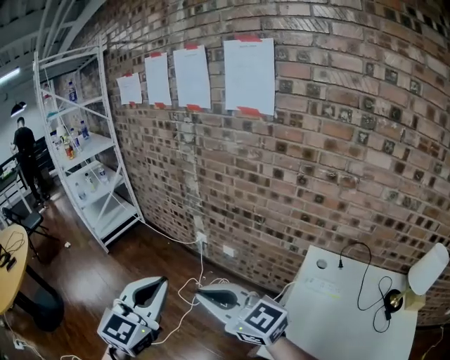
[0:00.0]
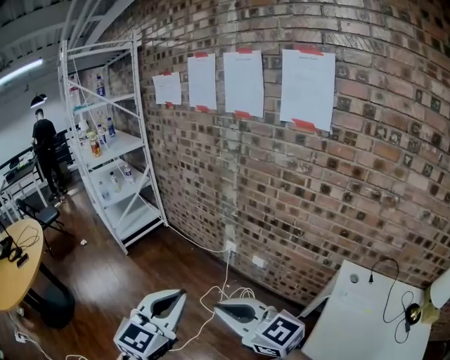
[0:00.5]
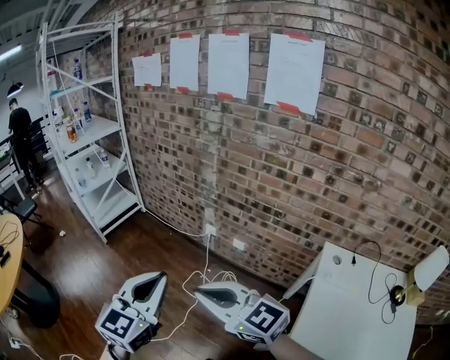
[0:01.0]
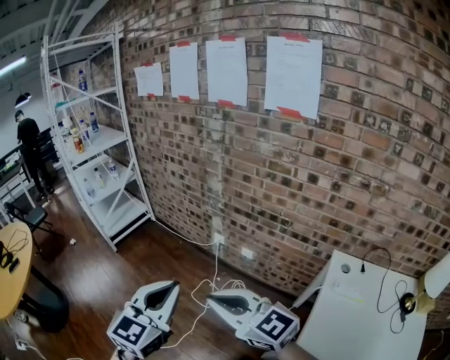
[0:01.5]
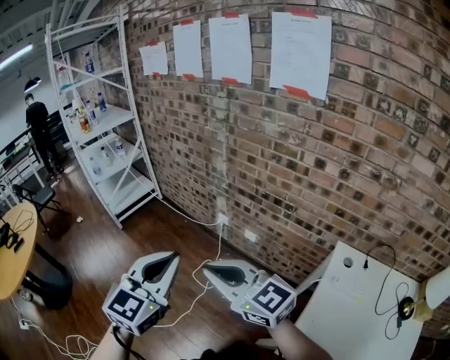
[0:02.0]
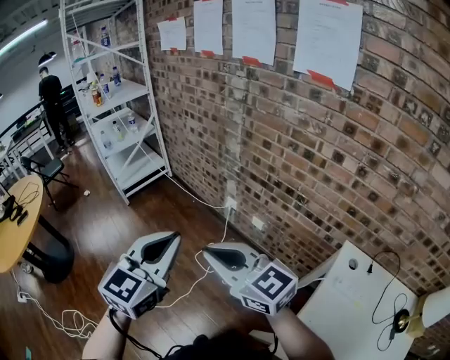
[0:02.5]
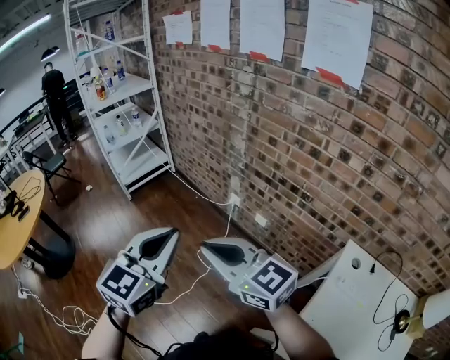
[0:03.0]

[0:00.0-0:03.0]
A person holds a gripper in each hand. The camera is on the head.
0:00.0 to 0:01.5: The two grippers go approximately 10 cm to the left and forward.
0:01.5 to 0:03.0: The right gripper shifts approximately 5 cm forward.

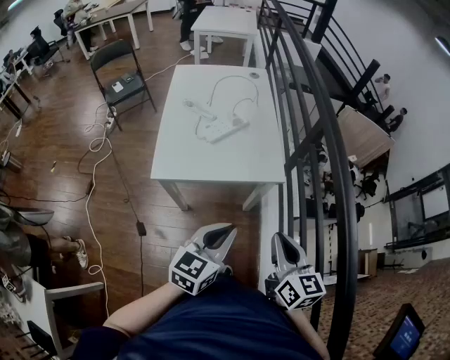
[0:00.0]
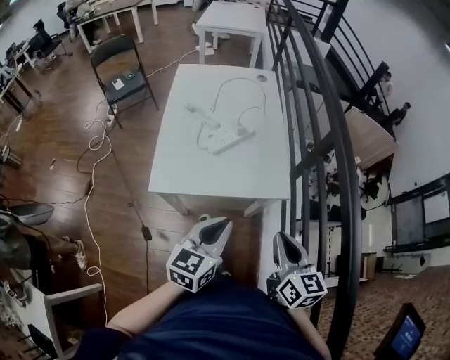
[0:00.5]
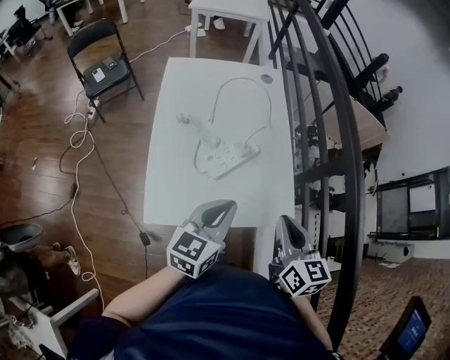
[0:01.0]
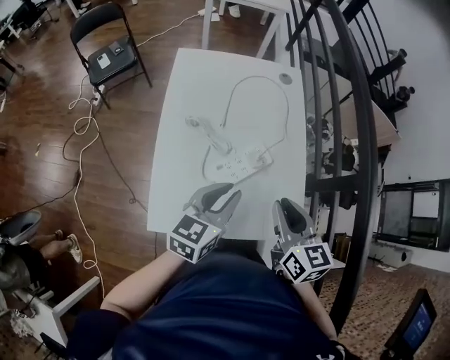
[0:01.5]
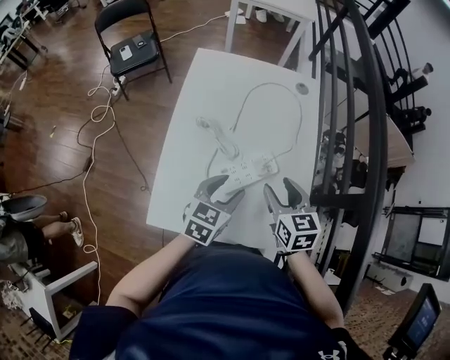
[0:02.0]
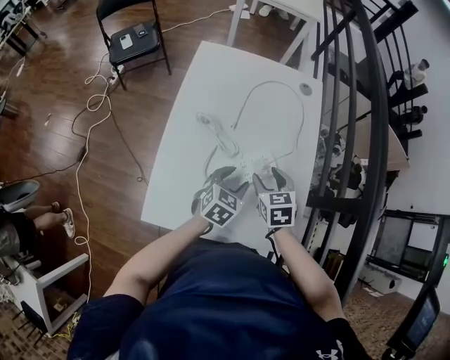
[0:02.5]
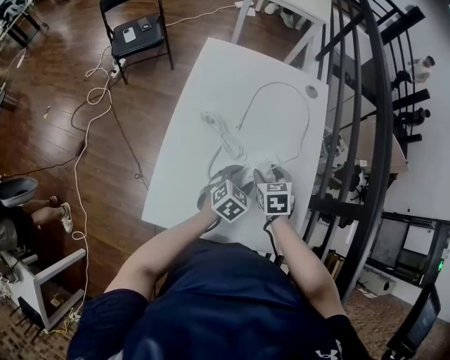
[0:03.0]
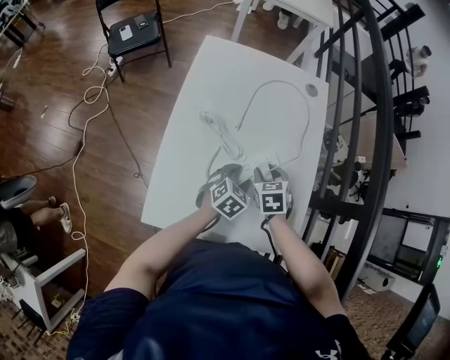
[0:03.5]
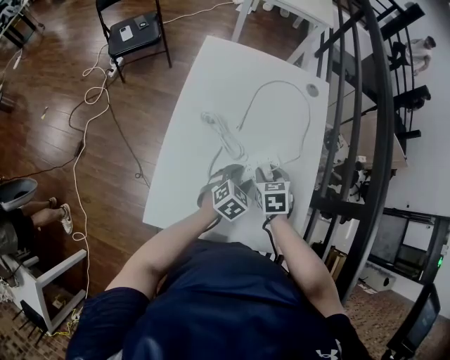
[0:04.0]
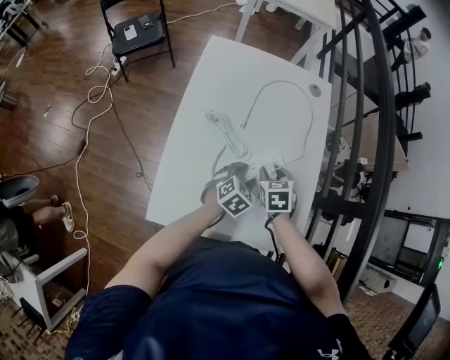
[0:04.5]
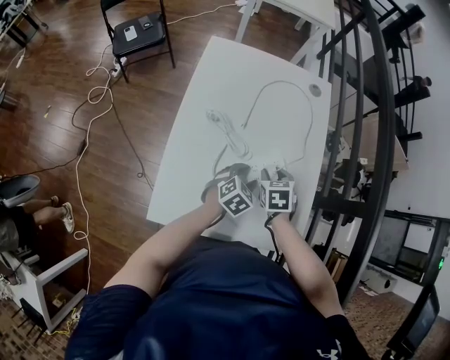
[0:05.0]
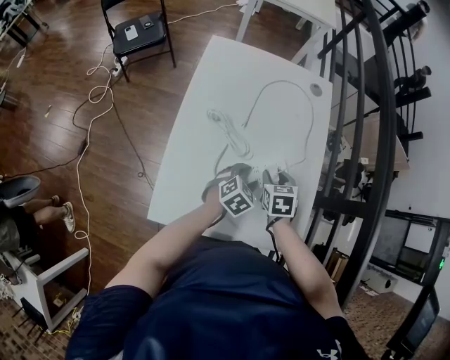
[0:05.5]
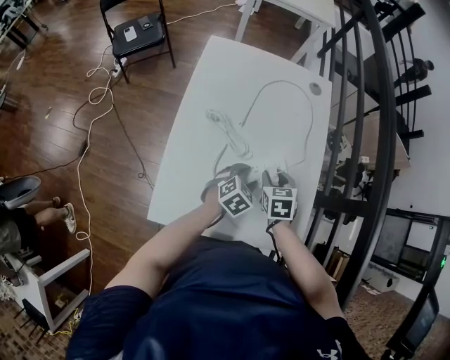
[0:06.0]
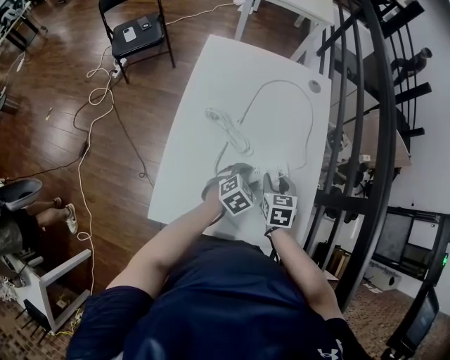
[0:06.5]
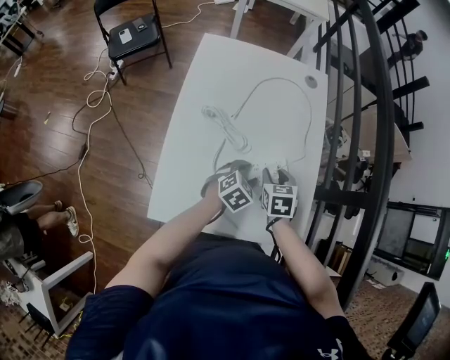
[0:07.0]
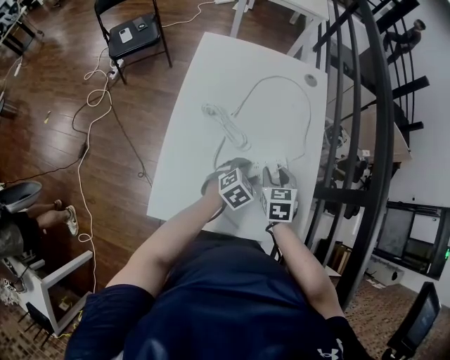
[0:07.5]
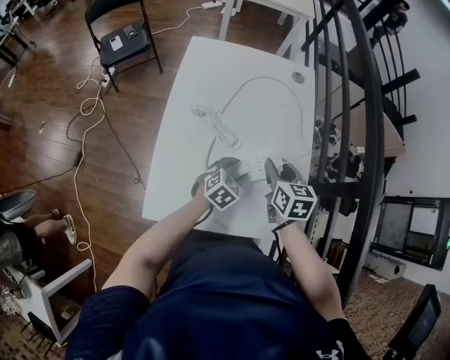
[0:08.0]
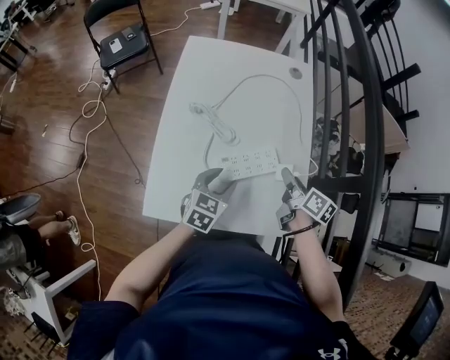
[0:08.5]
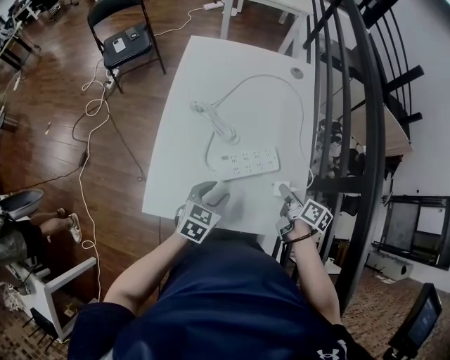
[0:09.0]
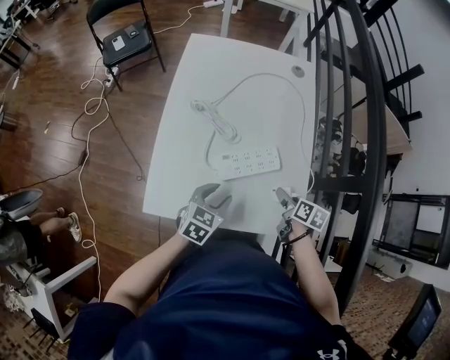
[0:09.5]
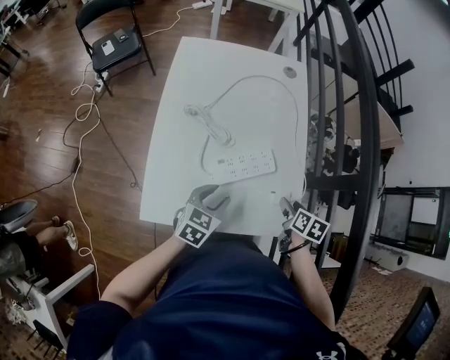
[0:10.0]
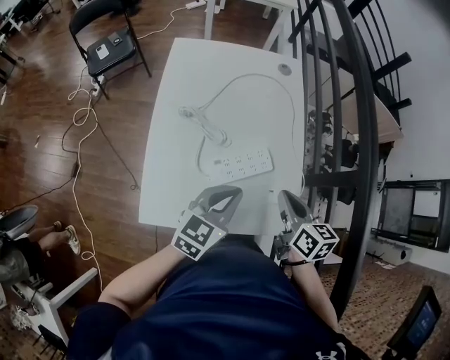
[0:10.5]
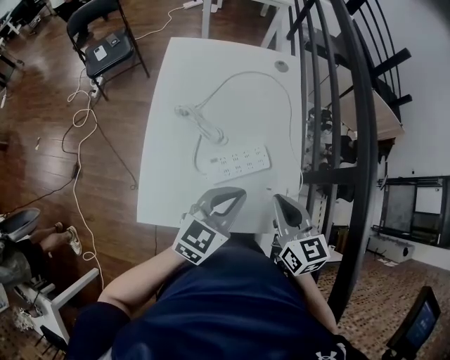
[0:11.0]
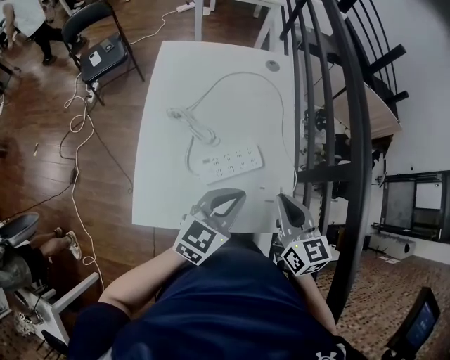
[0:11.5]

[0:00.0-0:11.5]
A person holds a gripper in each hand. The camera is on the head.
0:00.0 to 0:02.0: The two grippers travel together, forward, roughly 40 cm. The right gripper rotates about 30 degrees, and opens; the left gripper opens its fingers.
0:02.0 to 0:04.0: The two grippers go approximately 15 cm downward. The left gripper rotates roughly 20 degrees, while the right gripper rotates about 30 degrees.
0:04.0 to 0:06.0: The grippers move only a little.
0:06.0 to 0:07.5: The grippers move only a little.
0:07.5 to 0:09.5: The right gripper travels to the right and backward by about 15 cm, twists some 50 degrees clockwise, seen from behind, and opens its fingers; the left gripper shifts some 10 cm backward, and changes its angle by roughly 20 degrees.
0:09.5 to 0:11.5: The right gripper is displaced upward by approximately 20 cm, changes its angle by roughly 40 degrees, and closes, while the left gripper moves upward and to the right, approximately 15 cm, turns by some 30 degrees, and closes.

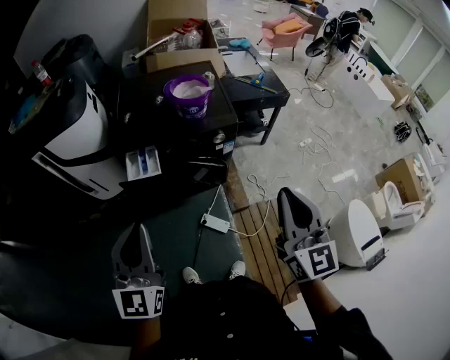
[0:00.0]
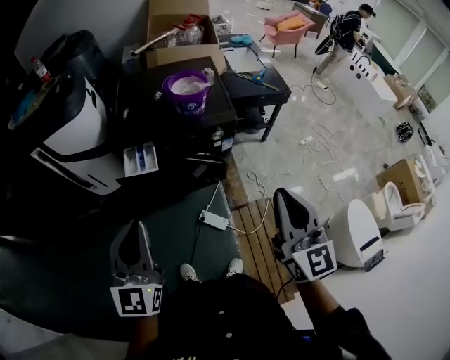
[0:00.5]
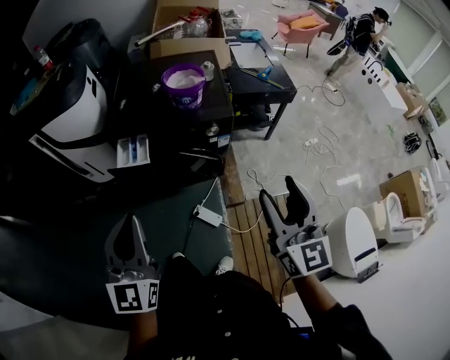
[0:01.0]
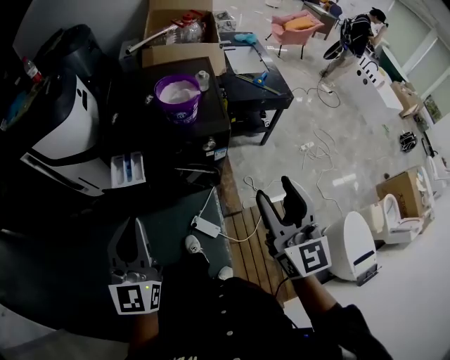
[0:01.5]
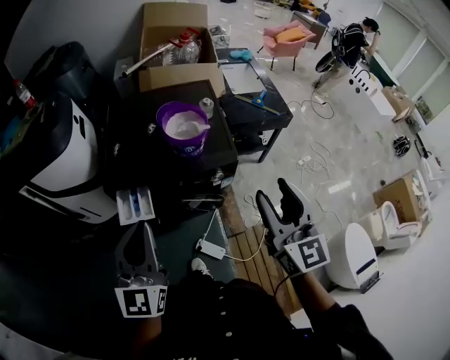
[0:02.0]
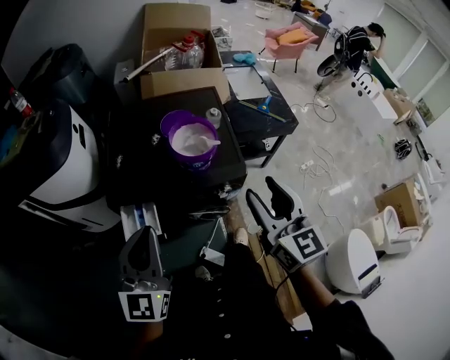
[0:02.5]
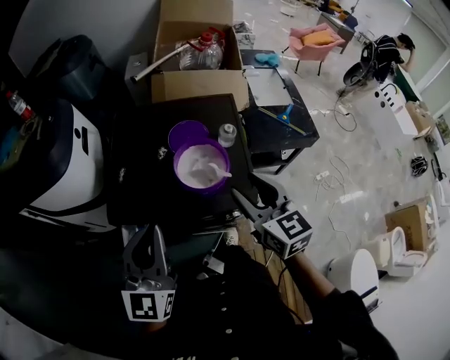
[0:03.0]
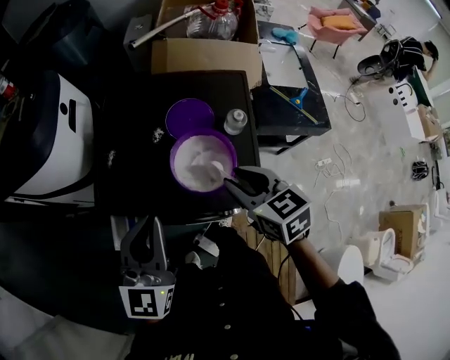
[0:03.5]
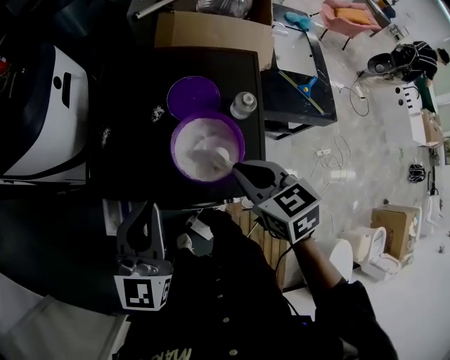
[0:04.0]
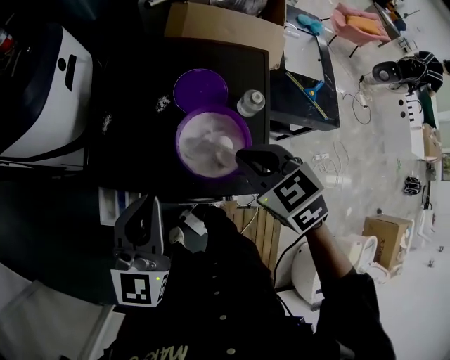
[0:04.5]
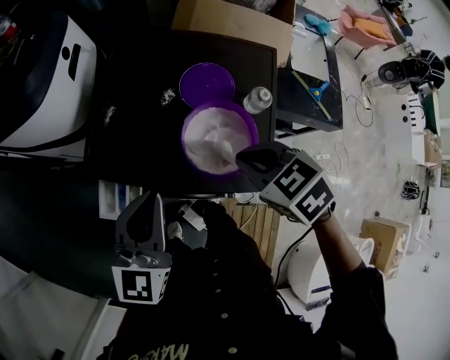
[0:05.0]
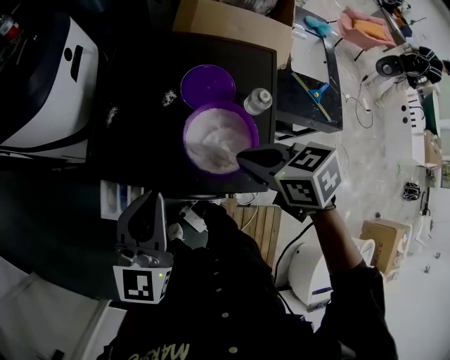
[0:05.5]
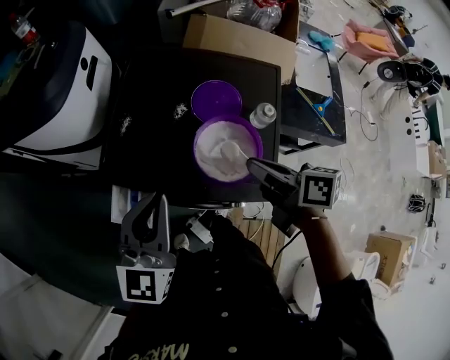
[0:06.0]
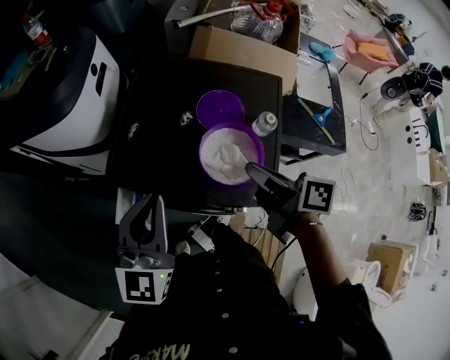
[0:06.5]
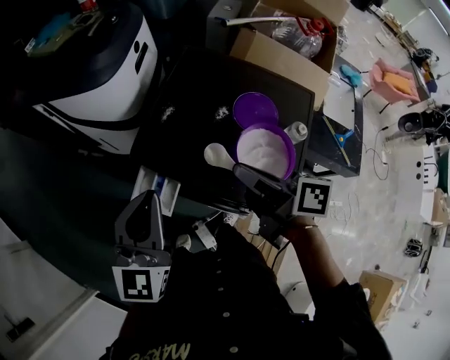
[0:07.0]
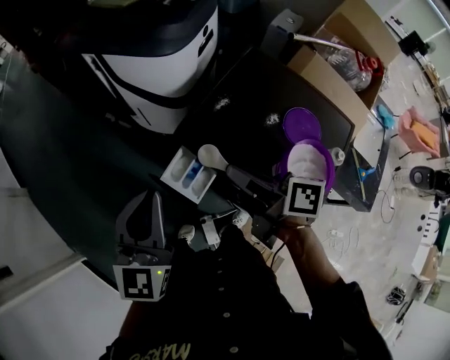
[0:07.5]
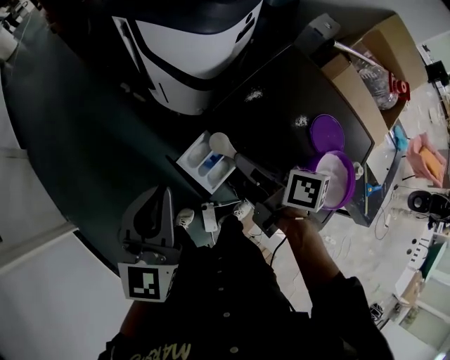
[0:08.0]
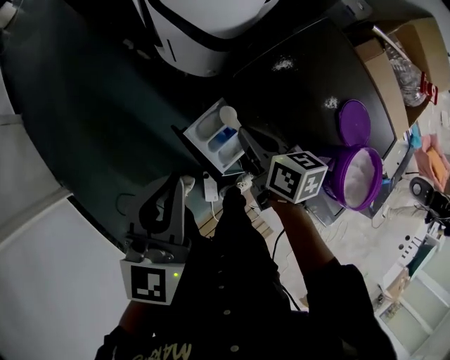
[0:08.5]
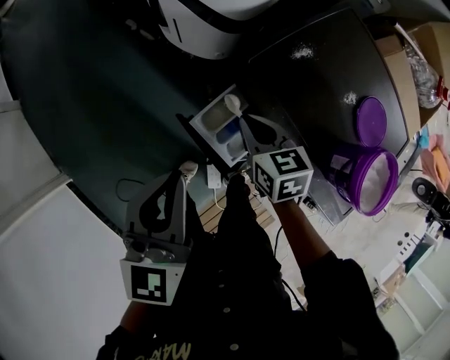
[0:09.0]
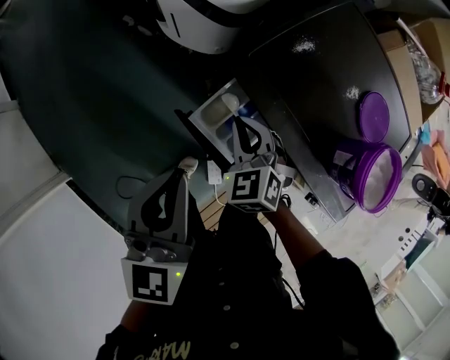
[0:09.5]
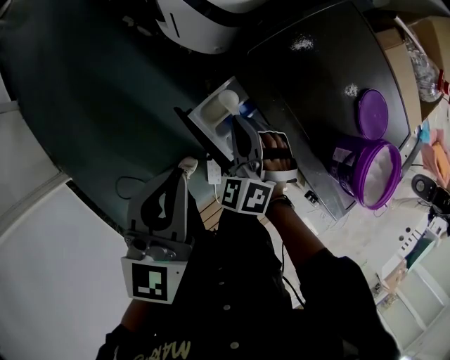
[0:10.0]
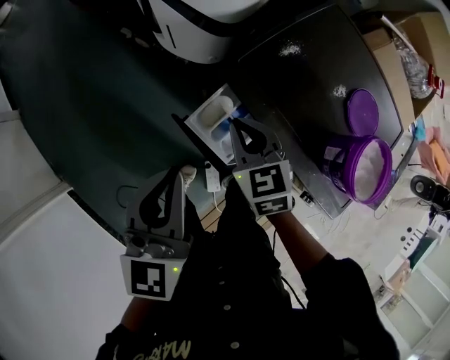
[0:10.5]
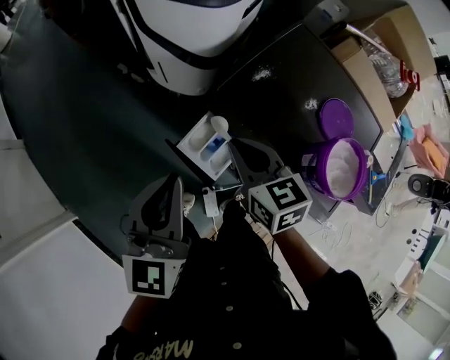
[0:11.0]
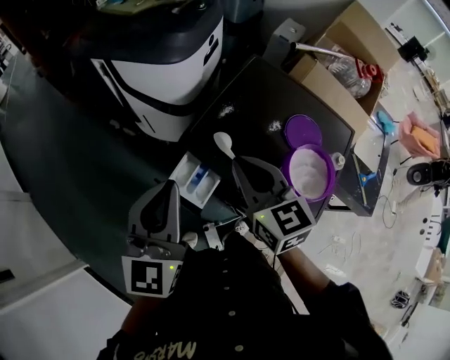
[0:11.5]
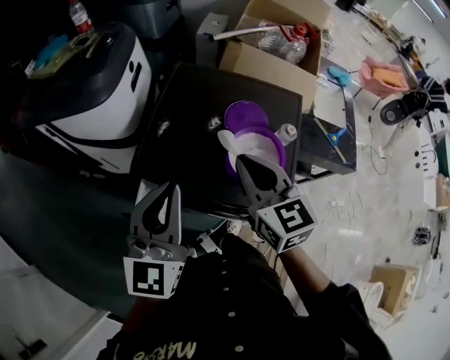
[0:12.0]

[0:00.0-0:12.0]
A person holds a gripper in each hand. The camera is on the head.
0:00.0 to 0:02.0: The grippers both shift forward by about 20 cm. The right gripper opens.
0:02.0 to 0:04.0: The right gripper shifts about 35 cm forward and downward, tips its fingers downward by roughly 40 degrees, and closes its fingers; the left gripper travels forward by about 20 cm.
0:04.0 to 0:06.0: The right gripper rotates approximately 40 degrees.
0:06.0 to 0:08.0: The right gripper shifts by about 30 cm, and turns by roughly 30 degrees. The left gripper moves approximately 25 cm, and changes its angle by roughly 40 degrees.
0:08.0 to 0:10.0: The right gripper travels downward by approximately 15 cm, and rotates around the line of its fingers by approximately 100 degrees, counterclockwise from behind. The left gripper moves downward, about 10 cm.
0:10.0 to 0:12.0: The right gripper travels upward by approximately 25 cm, and twists some 70 degrees clockwise, seen from behind, while the left gripper moves about 25 cm, and swivels roughly 40 degrees.
